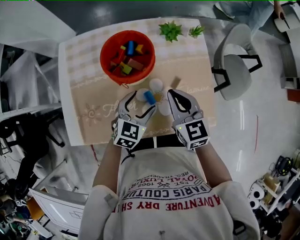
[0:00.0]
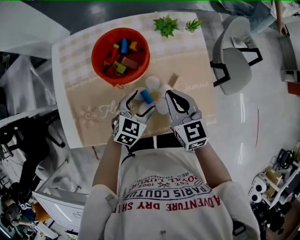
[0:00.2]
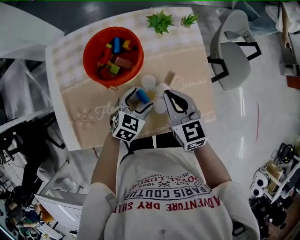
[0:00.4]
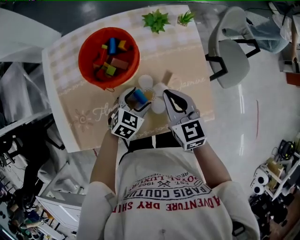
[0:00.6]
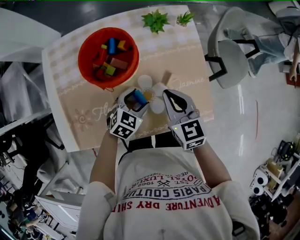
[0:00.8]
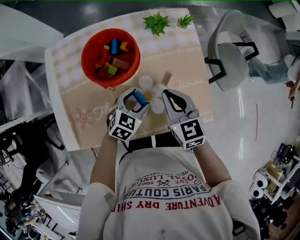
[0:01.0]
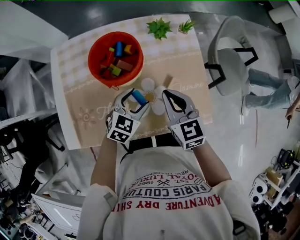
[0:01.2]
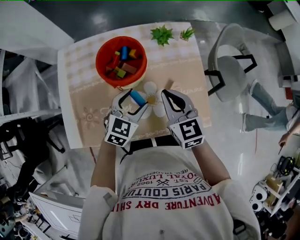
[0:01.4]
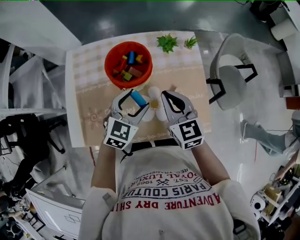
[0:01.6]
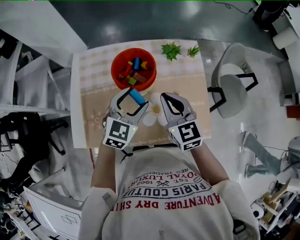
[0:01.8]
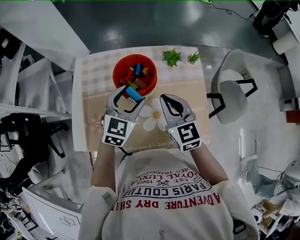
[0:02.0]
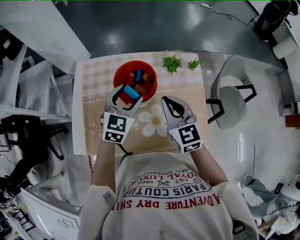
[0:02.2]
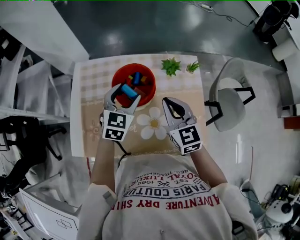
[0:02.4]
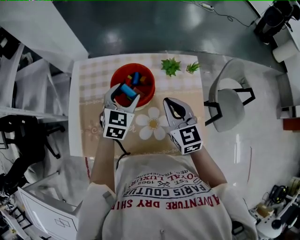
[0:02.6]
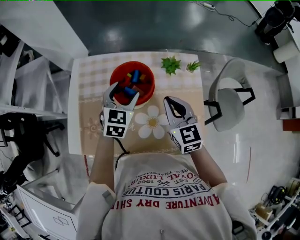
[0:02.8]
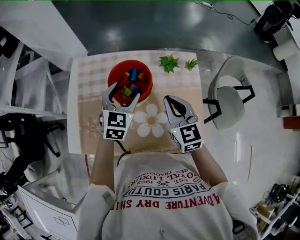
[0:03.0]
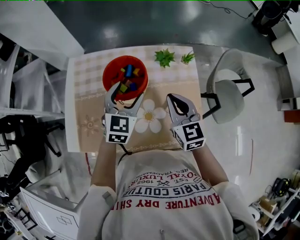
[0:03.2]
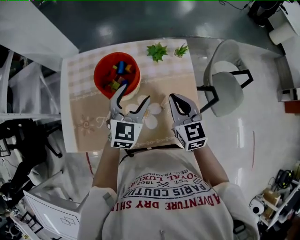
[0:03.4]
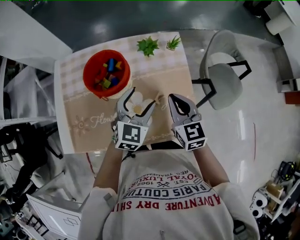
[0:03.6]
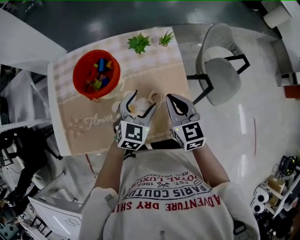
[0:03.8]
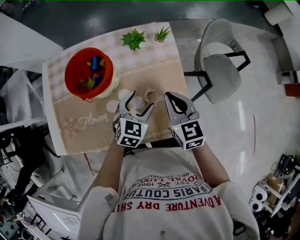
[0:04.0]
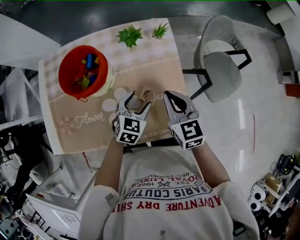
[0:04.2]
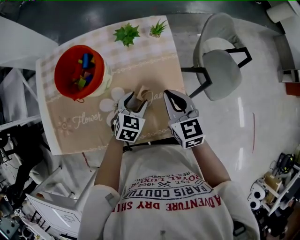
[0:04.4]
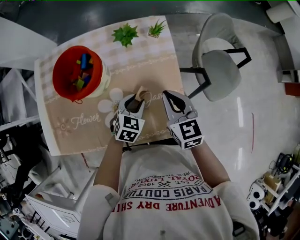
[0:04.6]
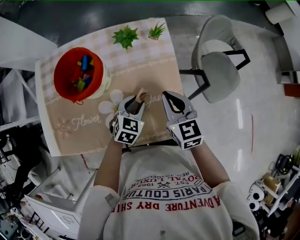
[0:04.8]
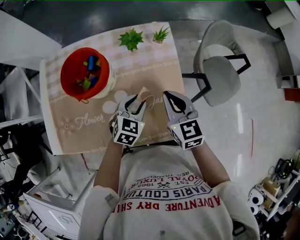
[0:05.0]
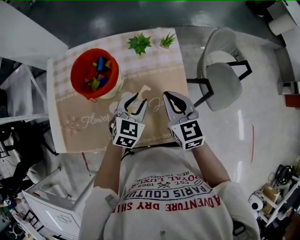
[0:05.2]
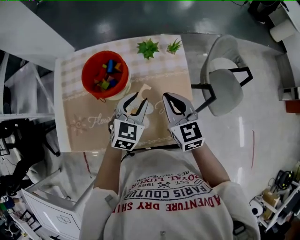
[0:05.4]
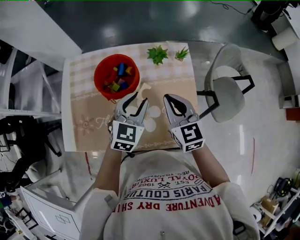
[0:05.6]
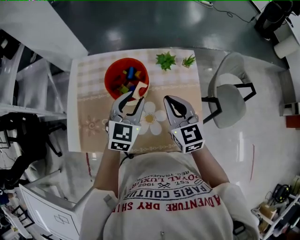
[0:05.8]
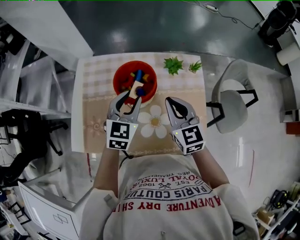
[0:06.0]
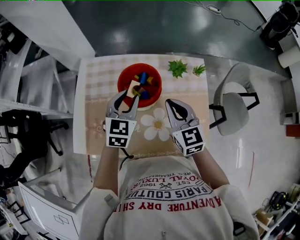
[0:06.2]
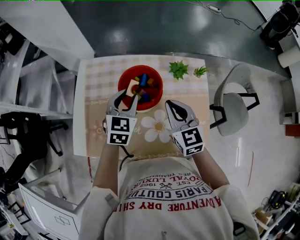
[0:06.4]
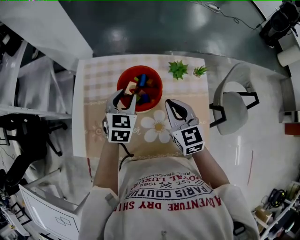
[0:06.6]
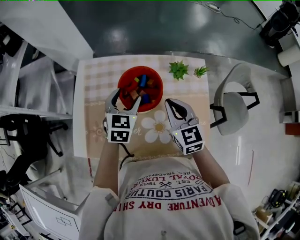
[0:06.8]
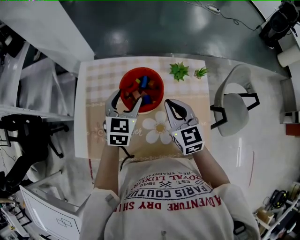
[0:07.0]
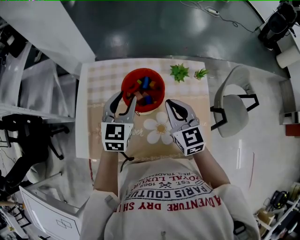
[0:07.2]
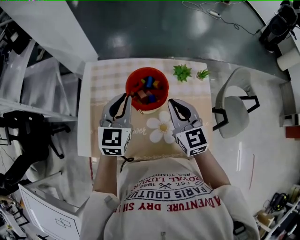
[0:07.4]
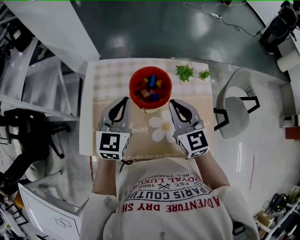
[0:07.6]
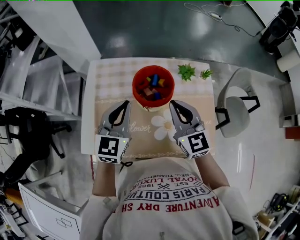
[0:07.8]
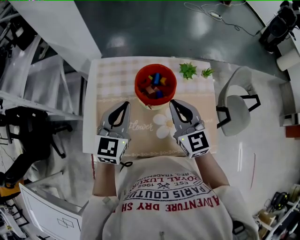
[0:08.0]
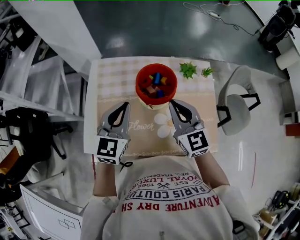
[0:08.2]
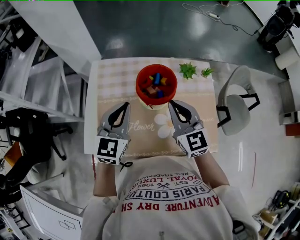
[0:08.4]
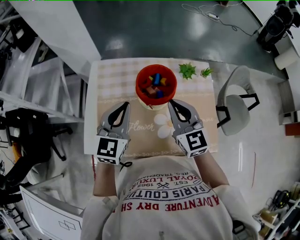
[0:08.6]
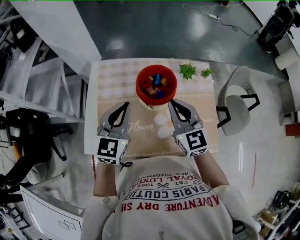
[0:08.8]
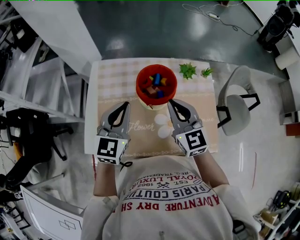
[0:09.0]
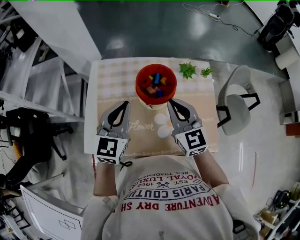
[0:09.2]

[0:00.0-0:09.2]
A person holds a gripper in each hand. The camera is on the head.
0:00.0 to 0:01.6: The left gripper shifts some 10 cm upward.
0:01.6 to 0:03.0: The right gripper travels forward by some 5 cm; the left gripper is displaced forward by roughly 10 cm, and swivels roughly 20 degrees.
0:03.0 to 0:04.6: The left gripper moves to the right and downward, roughly 30 cm, rotates roughly 30 degrees, and closes; the right gripper goes about 20 cm to the right and downward.
0:04.6 to 0:06.2: Both grippers move to the left and upward, about 25 cm. The left gripper changes its angle by about 30 degrees.
0:06.2 to 0:07.6: The right gripper ends up about 5 cm from where it was; the left gripper heads to the left and upward, covering about 10 cm, and closes its fingers.
0:07.6 to 0:09.2: The grippers stay close to where they were, moving slightly.

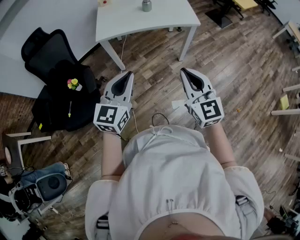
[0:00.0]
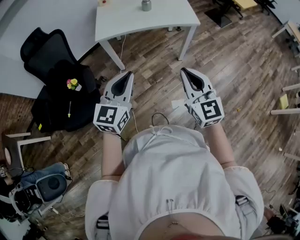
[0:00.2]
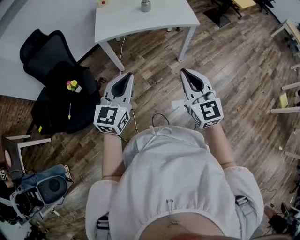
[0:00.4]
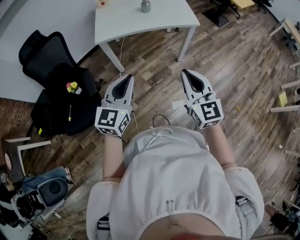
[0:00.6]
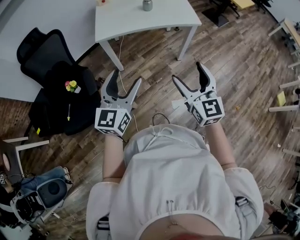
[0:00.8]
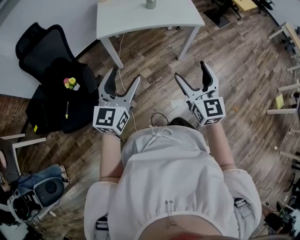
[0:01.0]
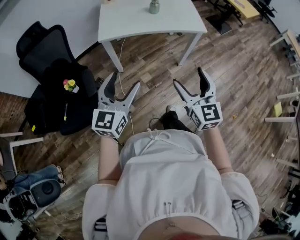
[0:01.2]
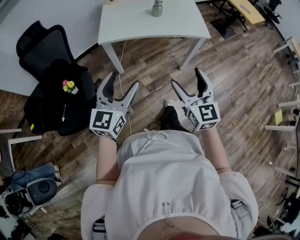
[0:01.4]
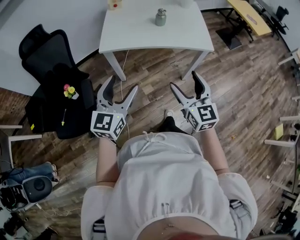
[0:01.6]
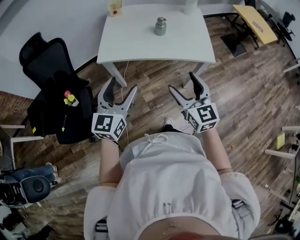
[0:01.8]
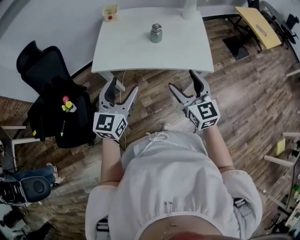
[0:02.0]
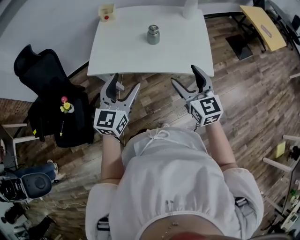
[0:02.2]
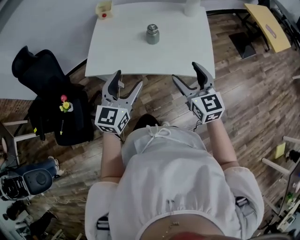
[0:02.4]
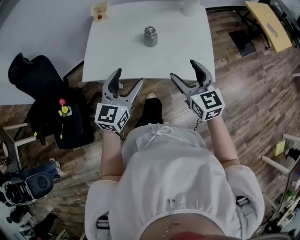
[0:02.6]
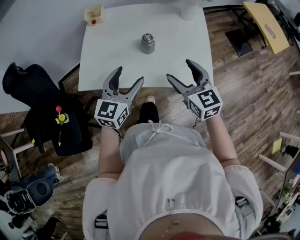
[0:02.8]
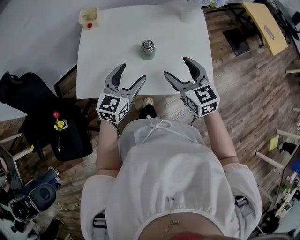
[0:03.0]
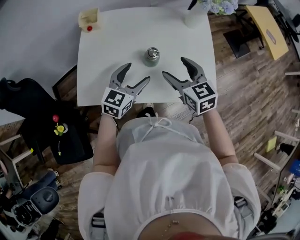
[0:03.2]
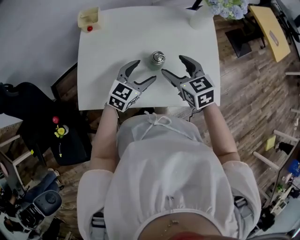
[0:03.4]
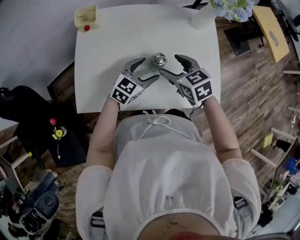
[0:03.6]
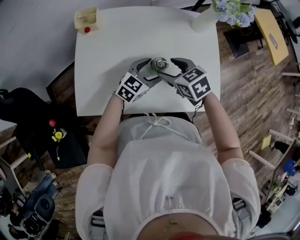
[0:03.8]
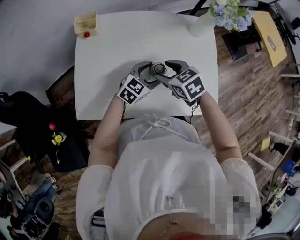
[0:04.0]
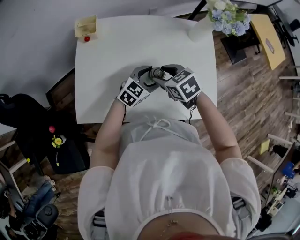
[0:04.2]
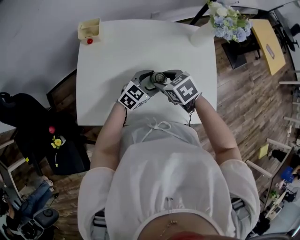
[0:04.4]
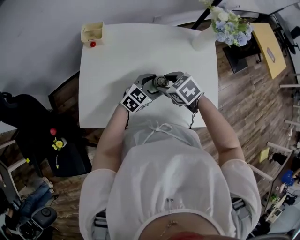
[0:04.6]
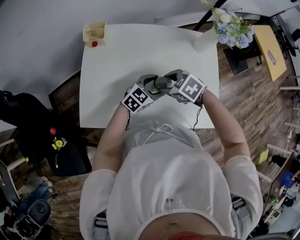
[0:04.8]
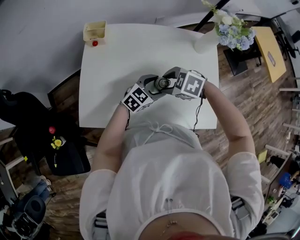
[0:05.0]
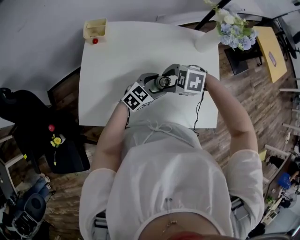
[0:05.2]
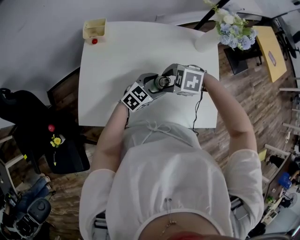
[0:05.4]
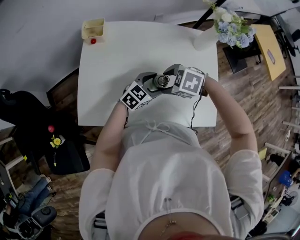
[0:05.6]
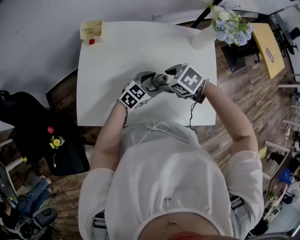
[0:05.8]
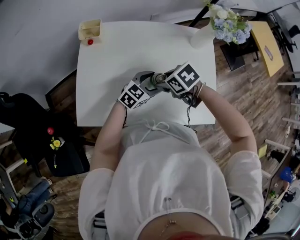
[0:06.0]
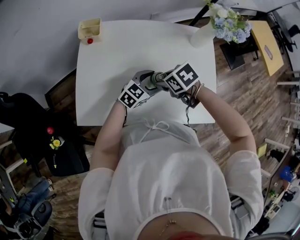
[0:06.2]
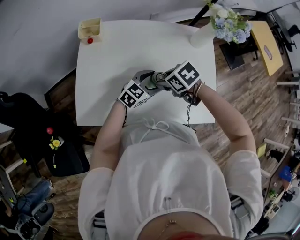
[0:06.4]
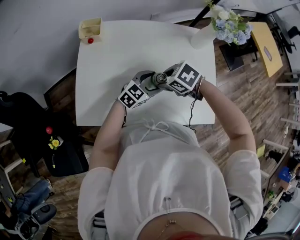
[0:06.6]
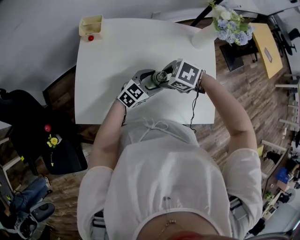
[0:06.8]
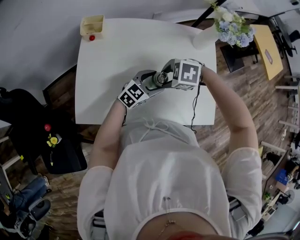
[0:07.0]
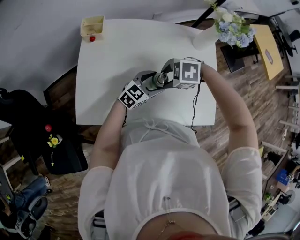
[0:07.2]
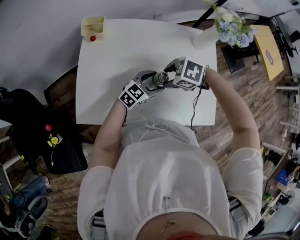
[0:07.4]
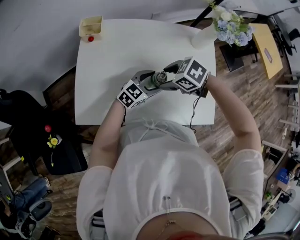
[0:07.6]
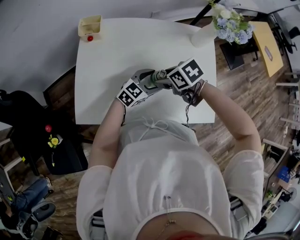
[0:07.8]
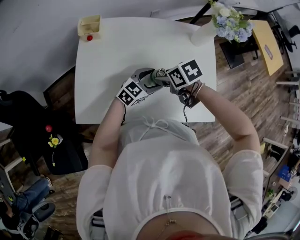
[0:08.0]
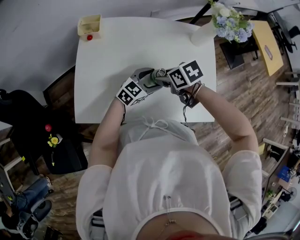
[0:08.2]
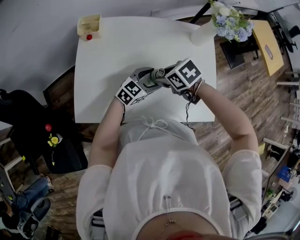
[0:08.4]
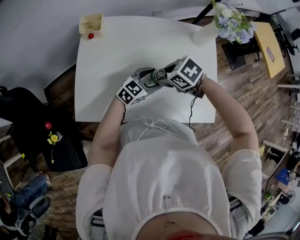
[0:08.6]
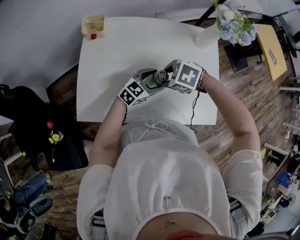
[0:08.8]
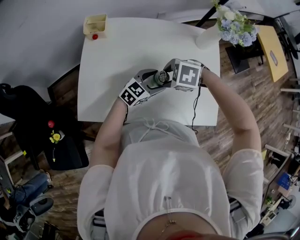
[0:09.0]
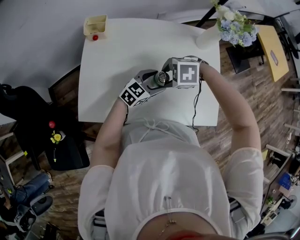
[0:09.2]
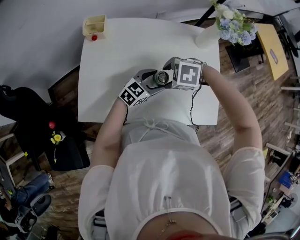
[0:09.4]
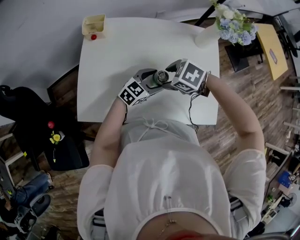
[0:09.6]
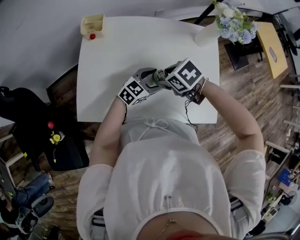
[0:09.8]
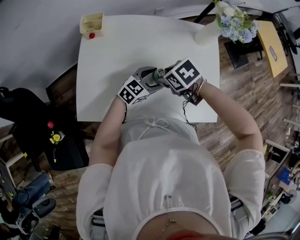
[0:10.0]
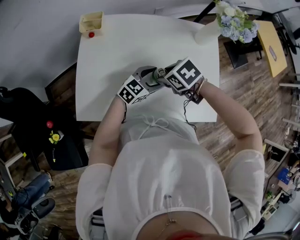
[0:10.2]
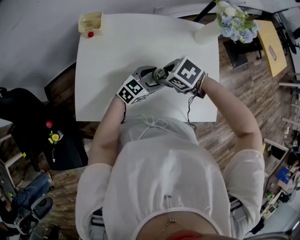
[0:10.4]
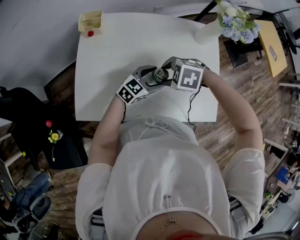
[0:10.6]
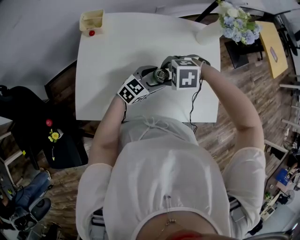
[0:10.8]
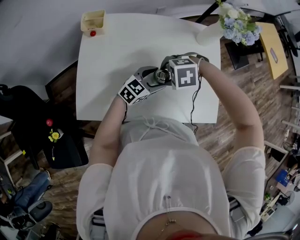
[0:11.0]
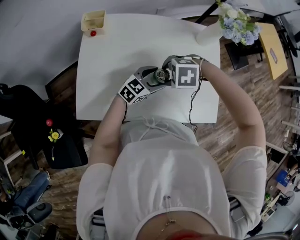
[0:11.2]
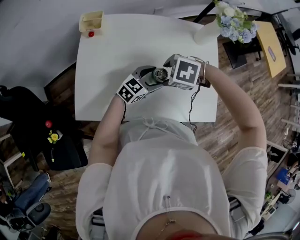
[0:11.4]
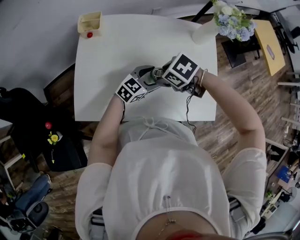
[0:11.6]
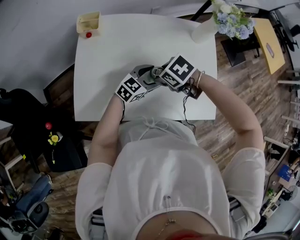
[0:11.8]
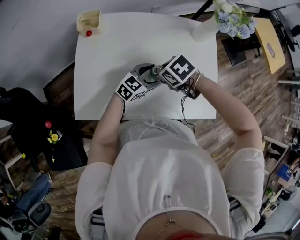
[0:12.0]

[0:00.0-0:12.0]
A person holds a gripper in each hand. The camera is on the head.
0:00.0 to 0:01.6: Both grippers travel together forward, roughly 15 cm. The right gripper opens up. The left gripper opens up.
0:01.6 to 0:03.0: The two grippers travel together, forward, about 50 cm.
0:03.0 to 0:04.4: The left gripper shifts some 20 cm forward and downward, and turns by approximately 30 degrees. The right gripper goes approximately 20 cm downward, forward and to the left, and tilts its fingers roughly 30 degrees downward.
0:07.6 to 0:09.0: The right gripper turns by roughly 30 degrees.
0:09.0 to 0:10.4: The right gripper rotates about 30 degrees.

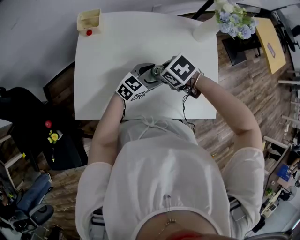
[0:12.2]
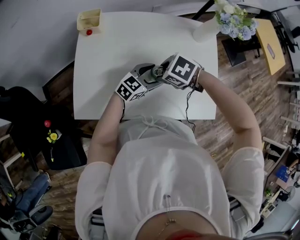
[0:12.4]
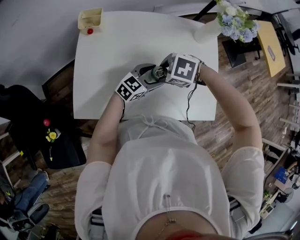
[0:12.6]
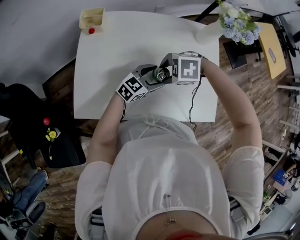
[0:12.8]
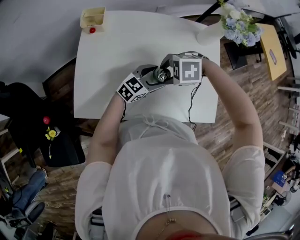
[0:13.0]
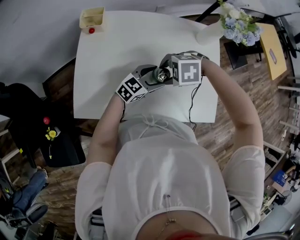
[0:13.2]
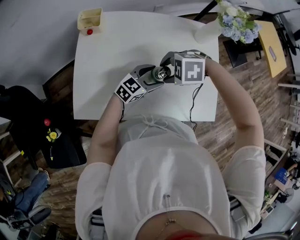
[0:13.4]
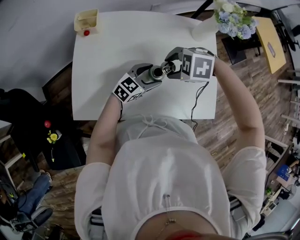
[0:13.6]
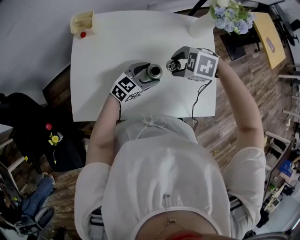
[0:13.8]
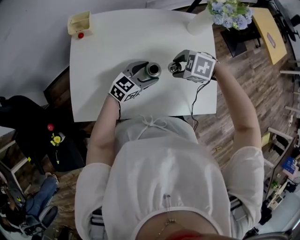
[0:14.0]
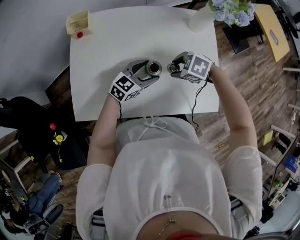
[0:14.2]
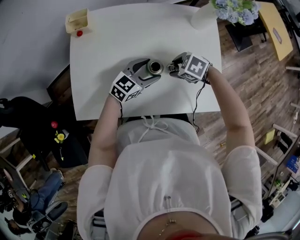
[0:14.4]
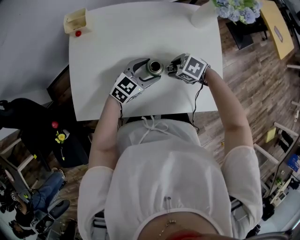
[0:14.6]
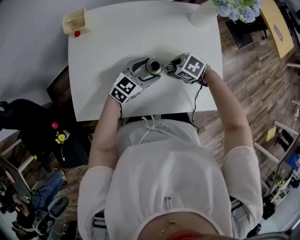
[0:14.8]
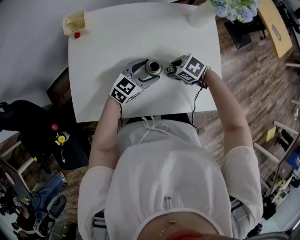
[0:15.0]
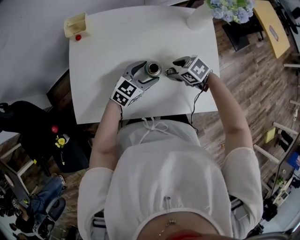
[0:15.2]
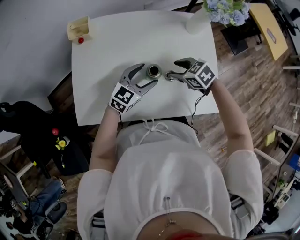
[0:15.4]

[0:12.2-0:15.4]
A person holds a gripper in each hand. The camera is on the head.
0:12.2 to 0:13.8: The right gripper shifts by approximately 5 cm, and swivels approximately 30 degrees.
0:13.8 to 0:15.4: The right gripper is displaced downward by approximately 5 cm, and rotates roughly 40 degrees.
